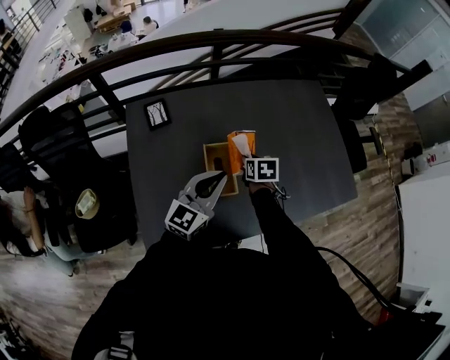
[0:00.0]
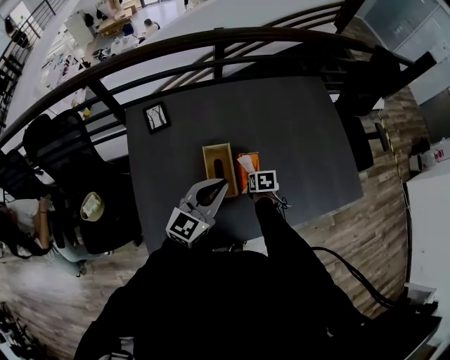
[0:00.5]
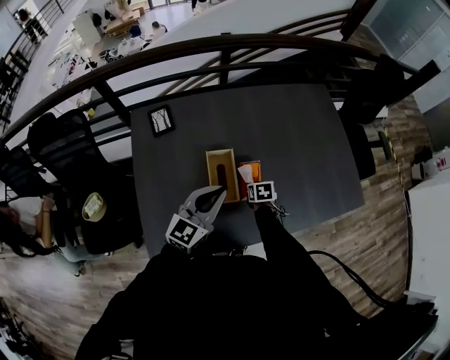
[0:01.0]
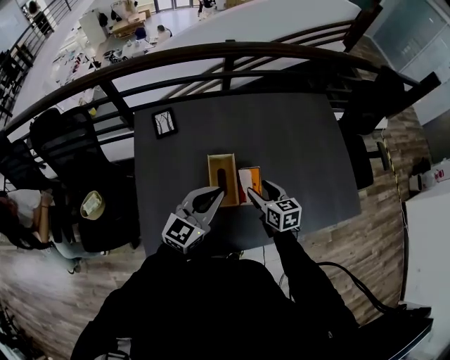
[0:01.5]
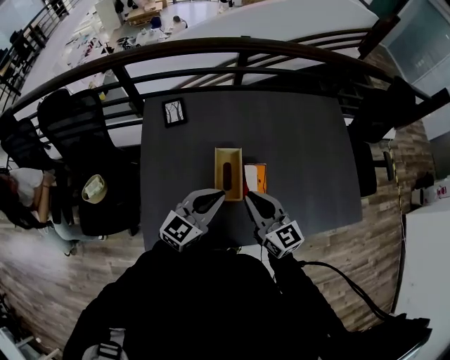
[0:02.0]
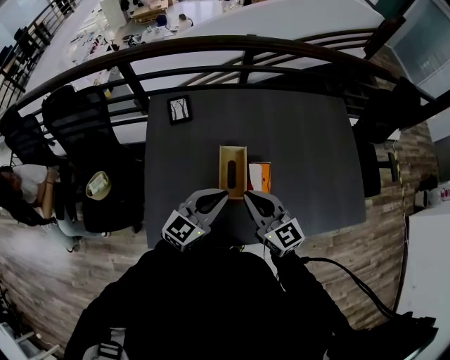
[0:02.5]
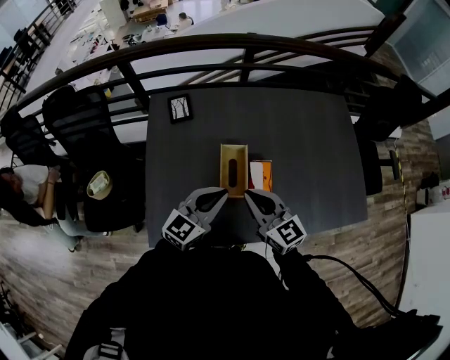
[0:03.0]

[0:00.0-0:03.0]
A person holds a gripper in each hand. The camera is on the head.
0:00.0 to 0:01.5: The right gripper moves backward, about 5 cm, reaches some 15 cm downward, then returns, changes its angle by some 30 degrees, and opens its fingers.
0:01.5 to 0:03.0: The right gripper goes roughly 15 cm upward, to the left and backward, swivels about 30 degrees, and closes.

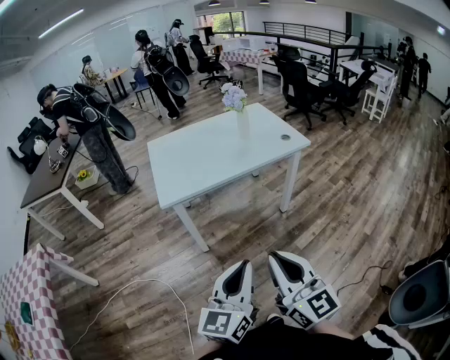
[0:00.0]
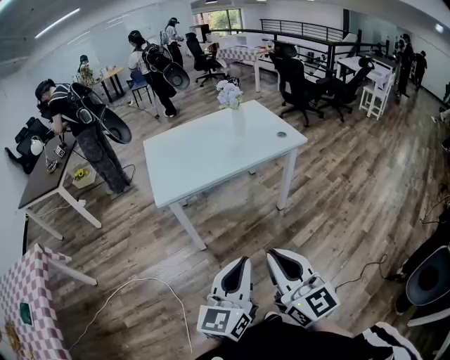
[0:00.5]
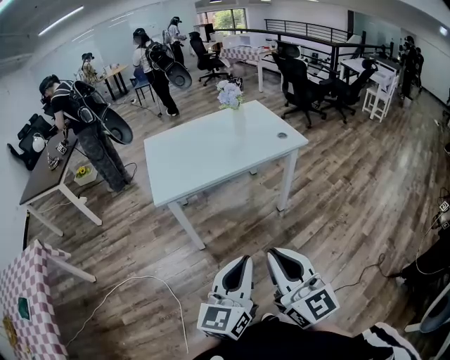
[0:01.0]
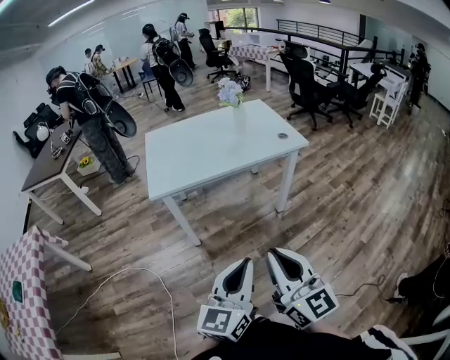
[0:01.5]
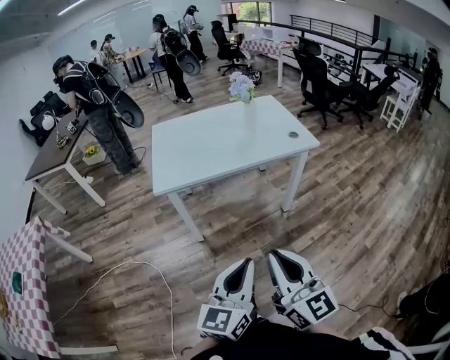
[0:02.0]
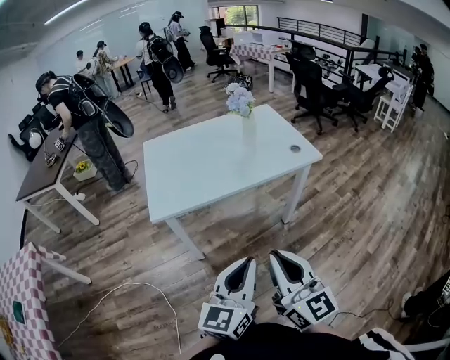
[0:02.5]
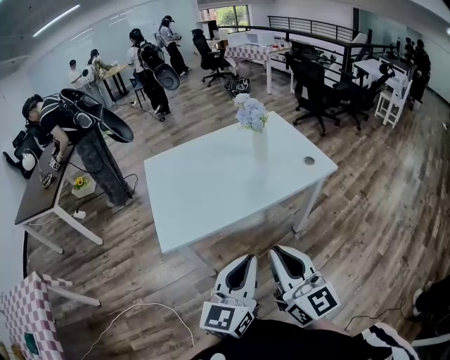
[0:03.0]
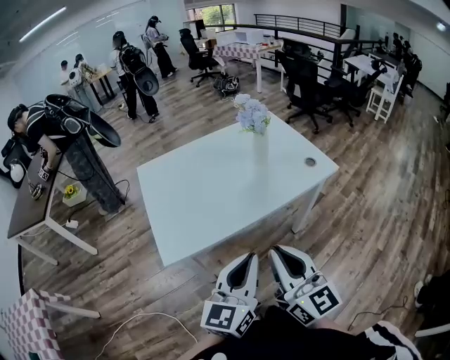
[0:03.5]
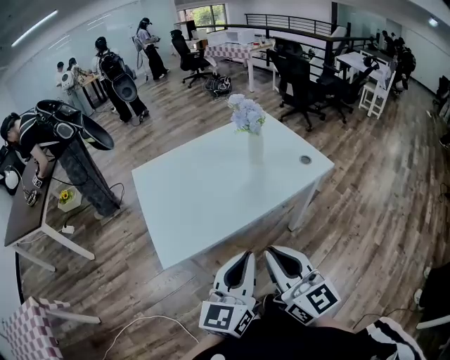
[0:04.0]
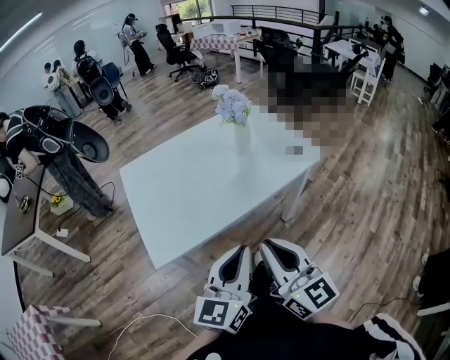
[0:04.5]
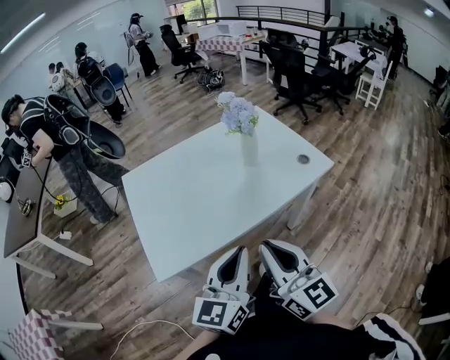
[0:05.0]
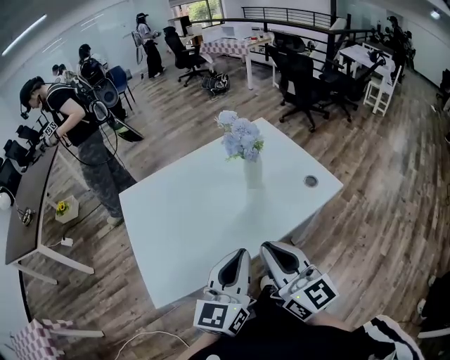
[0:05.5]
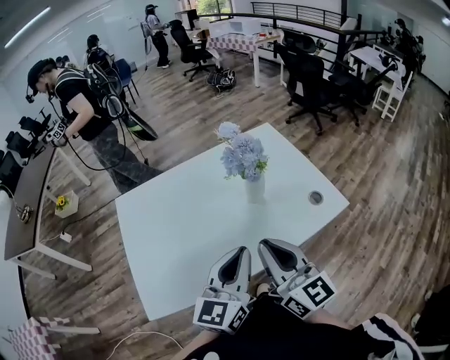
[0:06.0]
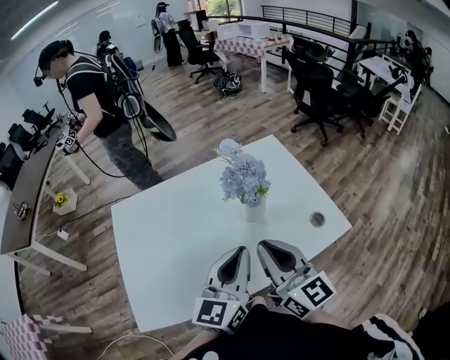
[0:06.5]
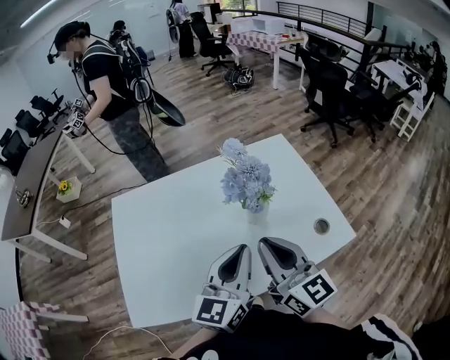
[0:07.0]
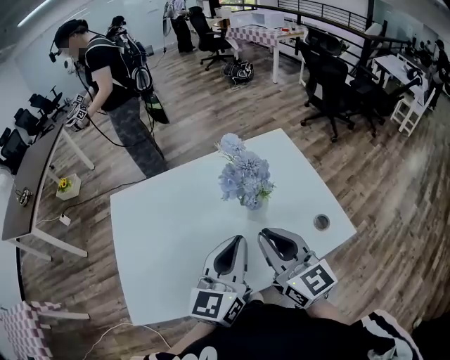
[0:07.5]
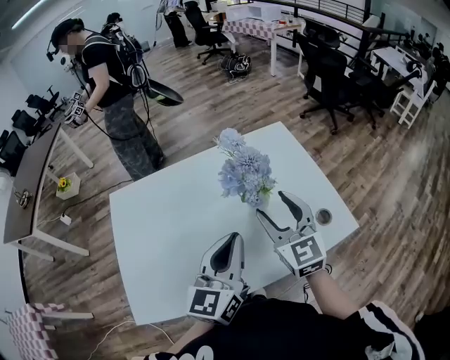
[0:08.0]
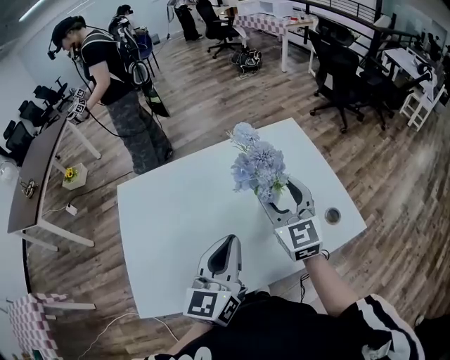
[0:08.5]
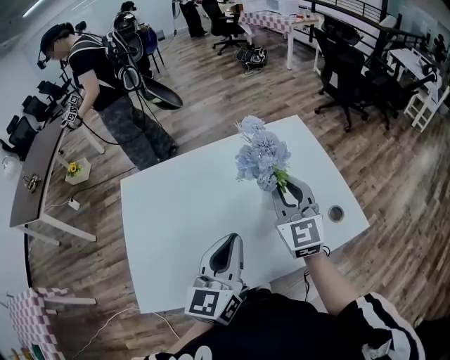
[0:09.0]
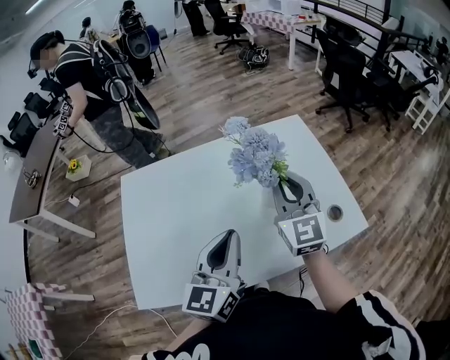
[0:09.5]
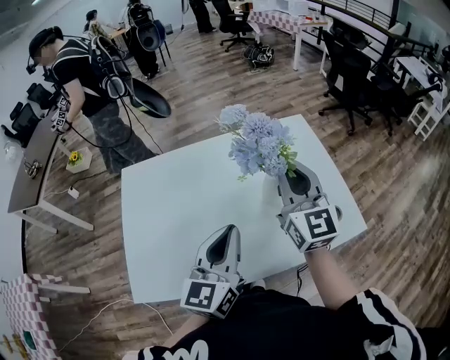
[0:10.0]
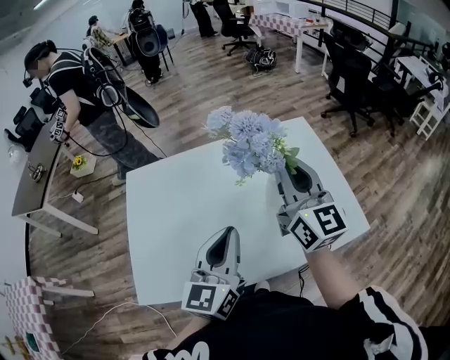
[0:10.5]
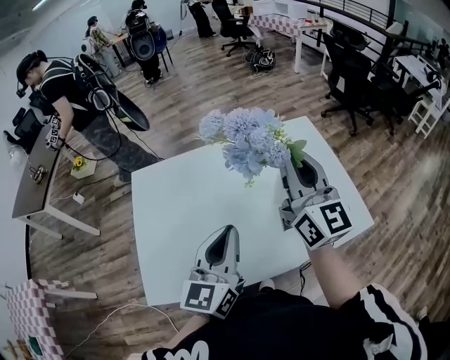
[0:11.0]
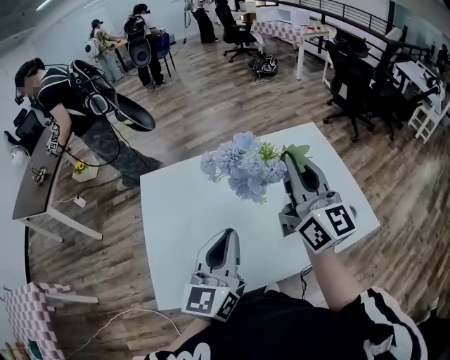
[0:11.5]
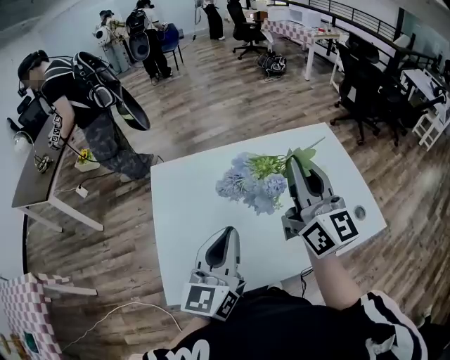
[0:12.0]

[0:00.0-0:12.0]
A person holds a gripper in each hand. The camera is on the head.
0:00.0 to 0:02.0: Both grippers move to the right, roughly 5 cm.
0:02.0 to 0:04.0: The two grippers go approximately 30 cm forward and to the left.
0:04.0 to 0:06.0: Both grippers move forward, about 25 cm.
0:06.0 to 0:08.0: The left gripper travels forward by approximately 10 cm. Meanwhile the right gripper is displaced forward by about 20 cm, changes its angle by roughly 30 degrees, and opens up.
0:08.0 to 0:10.0: The right gripper goes some 10 cm upward, and closes its fingers.
0:10.0 to 0:12.0: The right gripper moves to the left and upward, roughly 15 cm. The left gripper is displaced to the left by approximately 15 cm.

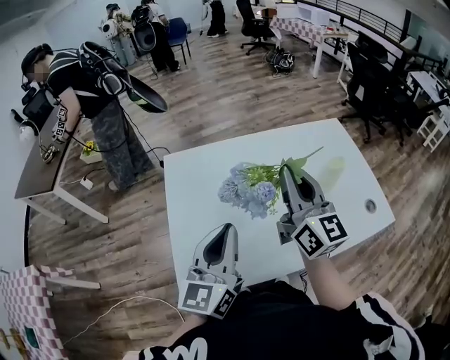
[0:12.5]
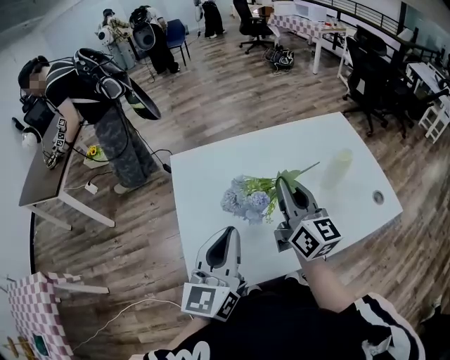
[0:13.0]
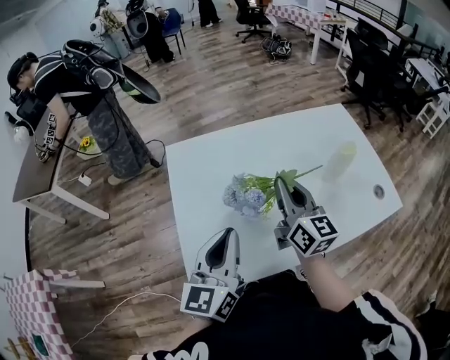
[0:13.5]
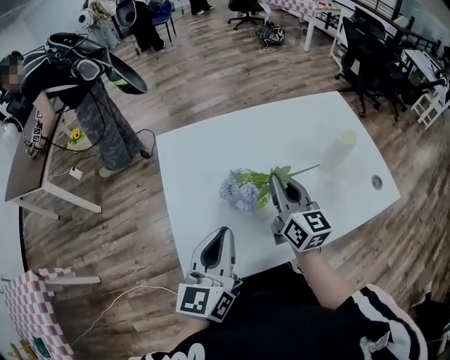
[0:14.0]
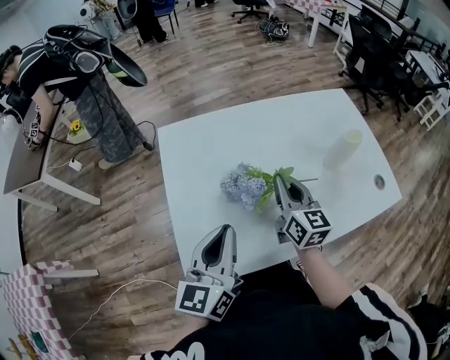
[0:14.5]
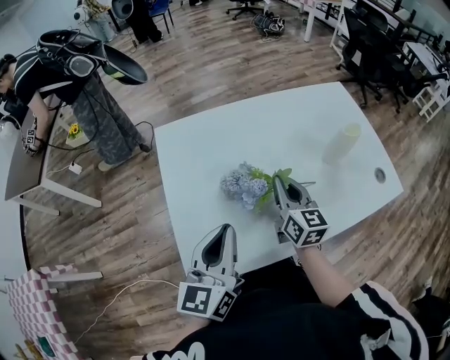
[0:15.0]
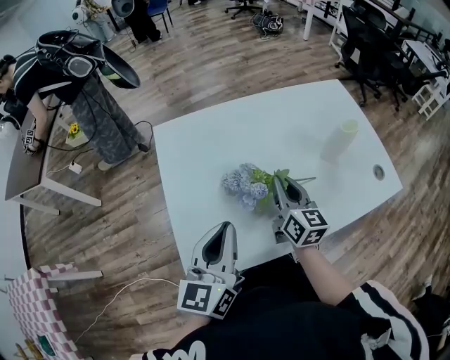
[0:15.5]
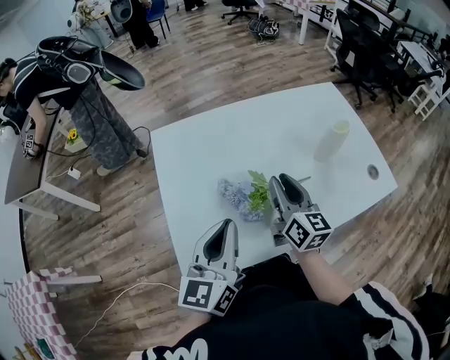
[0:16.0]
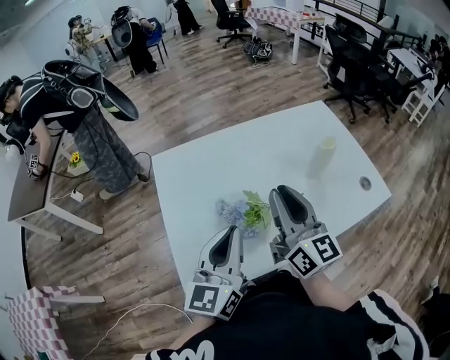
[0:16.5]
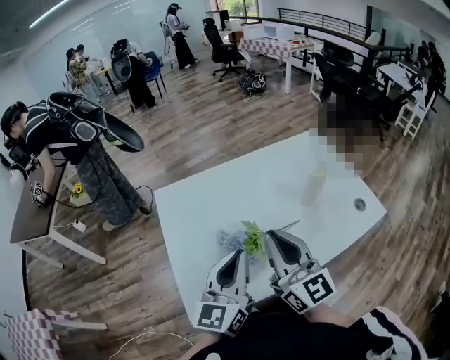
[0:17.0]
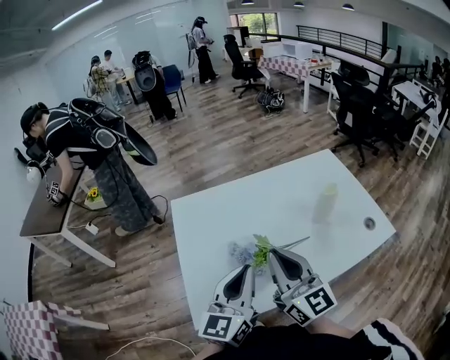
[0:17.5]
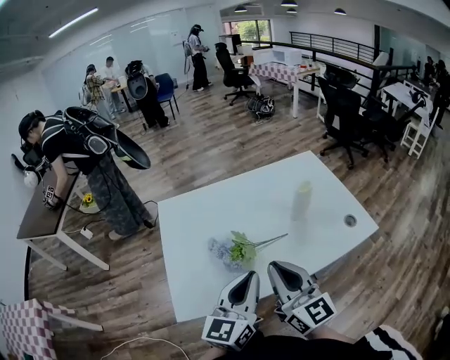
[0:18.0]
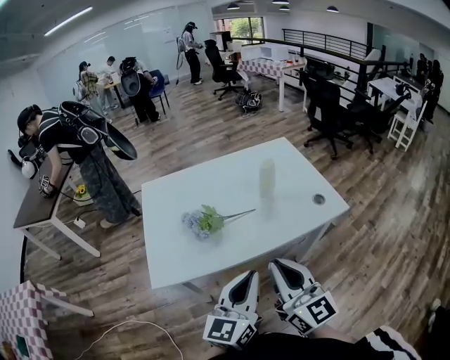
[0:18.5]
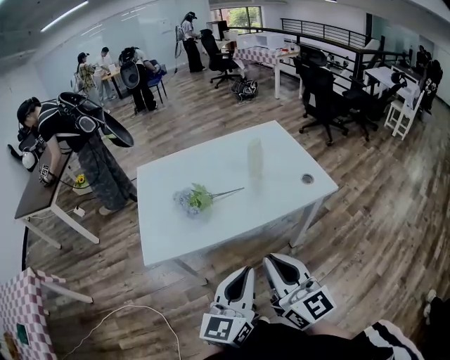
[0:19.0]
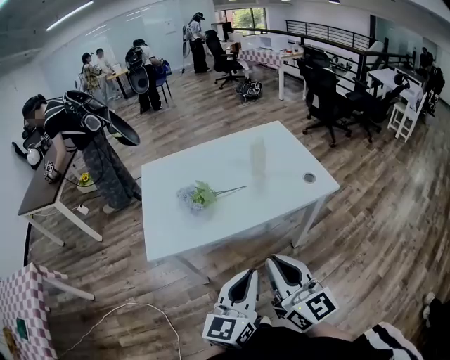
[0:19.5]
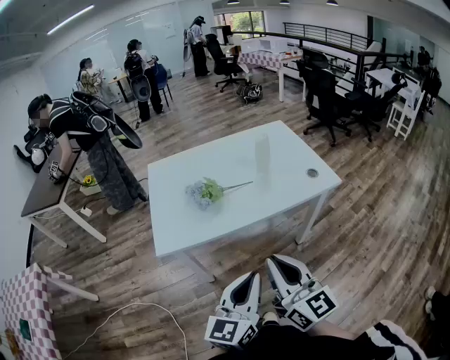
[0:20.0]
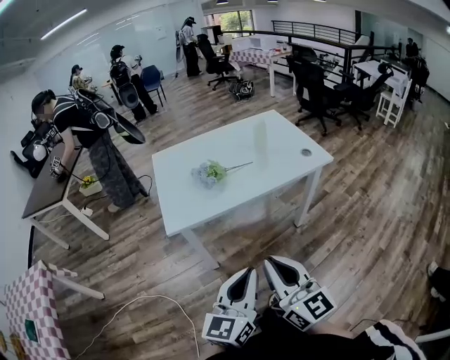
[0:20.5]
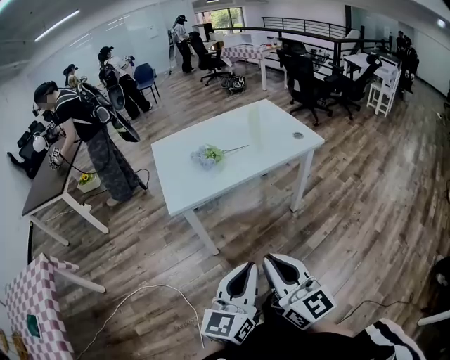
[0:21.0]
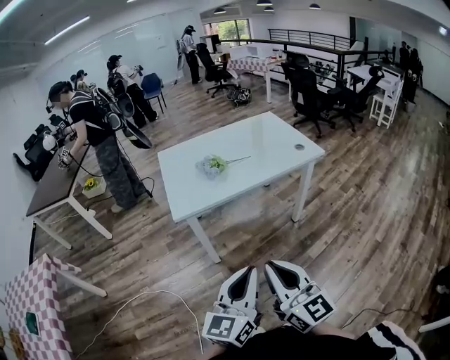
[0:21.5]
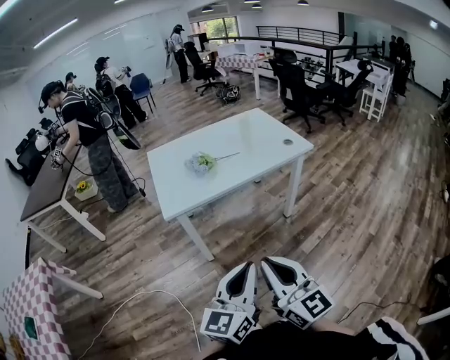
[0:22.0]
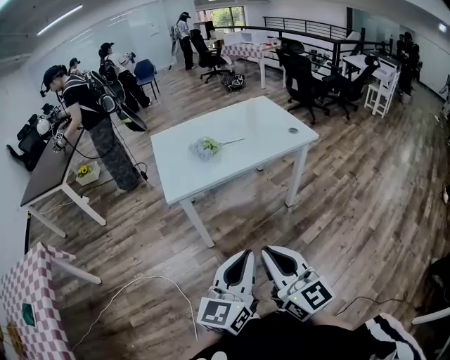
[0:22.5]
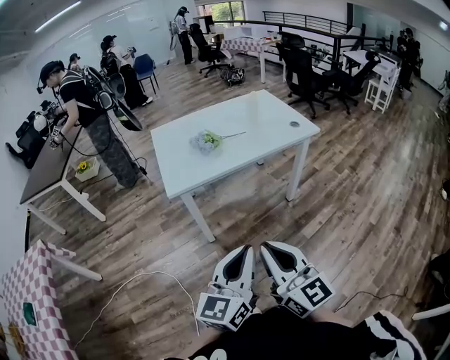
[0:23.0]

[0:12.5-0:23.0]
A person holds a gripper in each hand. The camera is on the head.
0:12.5 to 0:14.5: The left gripper travels to the left and downward by approximately 10 cm; the right gripper shifts roughly 20 cm downward, and swivels about 20 degrees.
0:14.5 to 0:16.5: The left gripper moves some 5 cm; the right gripper goes some 15 cm upward and backward.
0:16.5 to 0:19.0: Both grippers move backward and to the right, about 35 cm.
0:19.0 to 0:21.0: The left gripper heads backward, covering some 25 cm, while the right gripper moves backward and to the left, approximately 30 cm.
0:21.0 to 0:23.0: The grippers move only a little.

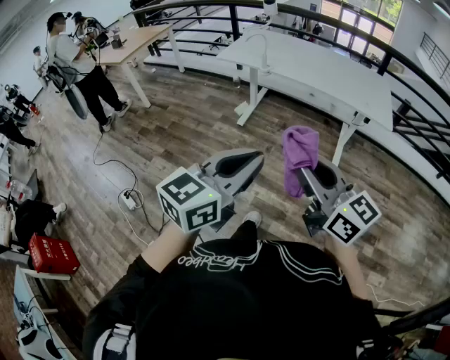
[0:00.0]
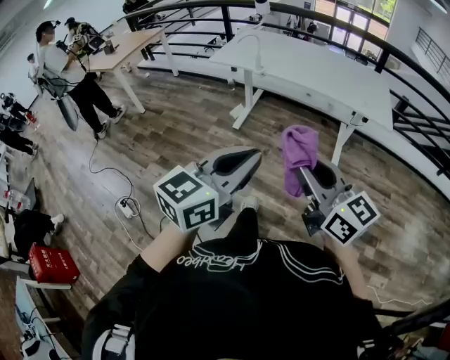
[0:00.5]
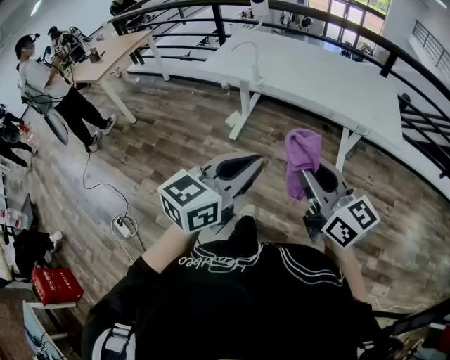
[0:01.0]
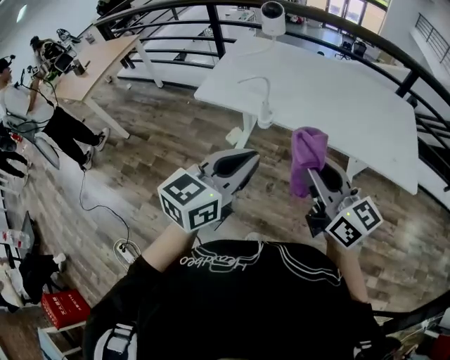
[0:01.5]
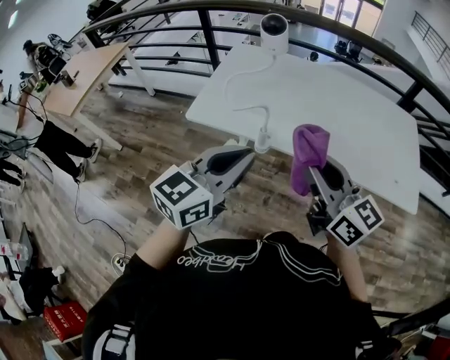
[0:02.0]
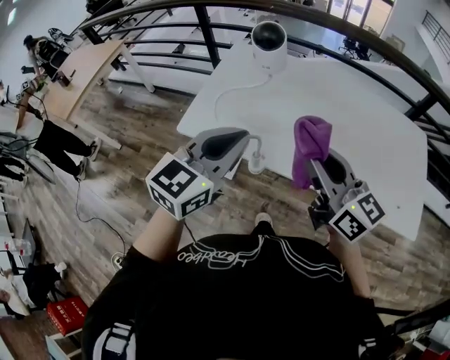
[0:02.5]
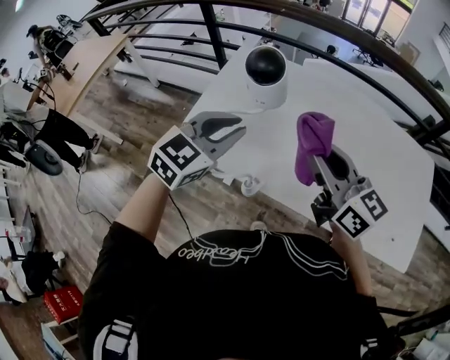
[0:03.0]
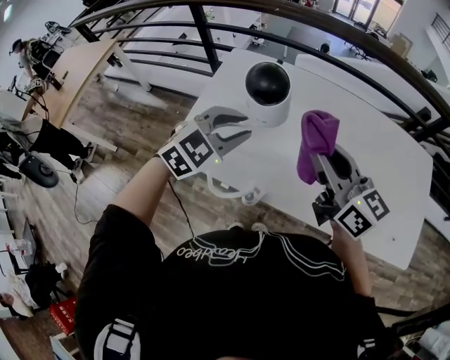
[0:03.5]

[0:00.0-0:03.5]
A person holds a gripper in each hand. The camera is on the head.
0:00.0 to 0:02.0: The two grippers travel together, forward, roughly 70 cm.
0:02.0 to 0:03.5: The two grippers go approximately 30 cm forward. The left gripper swivels some 40 degrees, and opens.
